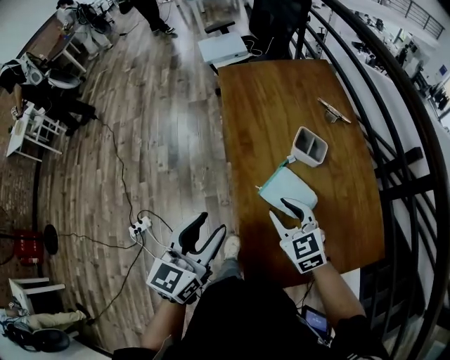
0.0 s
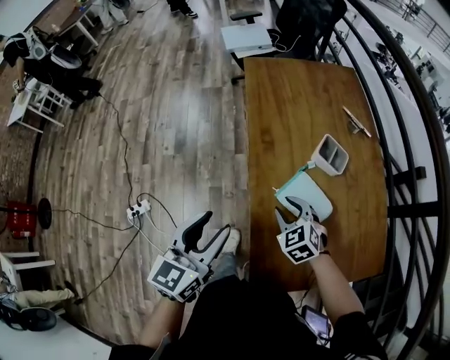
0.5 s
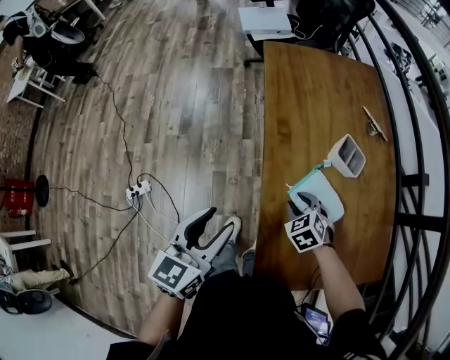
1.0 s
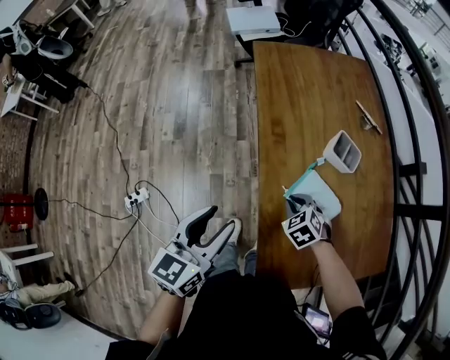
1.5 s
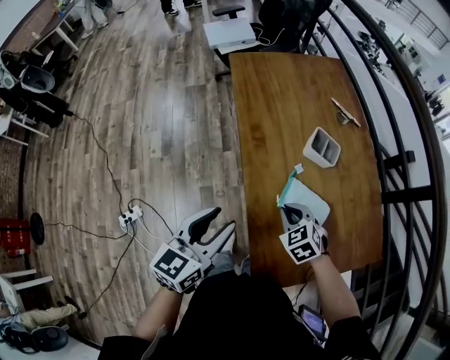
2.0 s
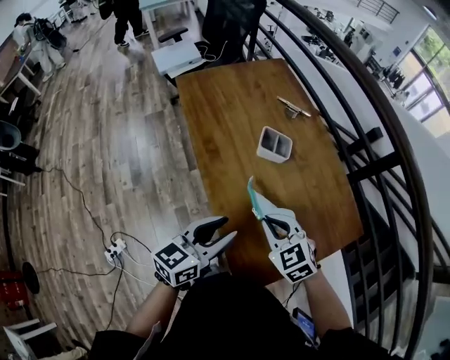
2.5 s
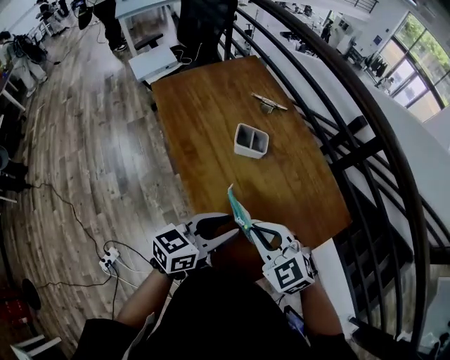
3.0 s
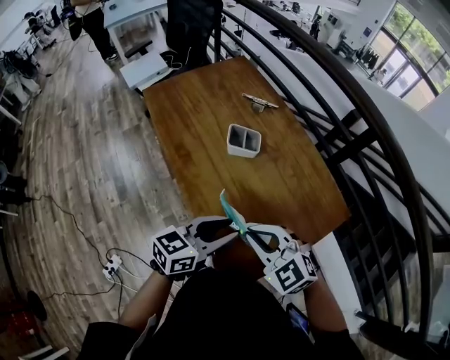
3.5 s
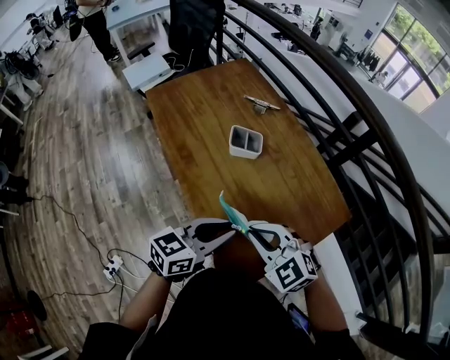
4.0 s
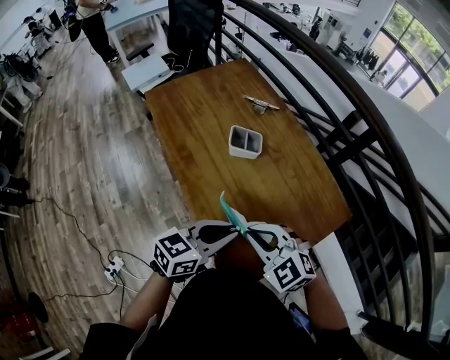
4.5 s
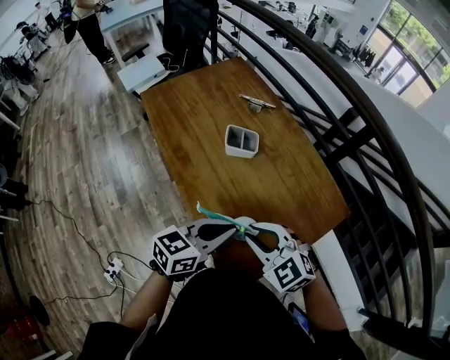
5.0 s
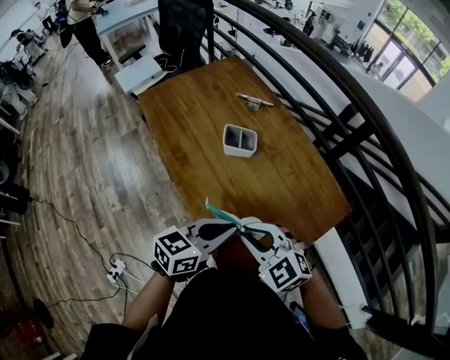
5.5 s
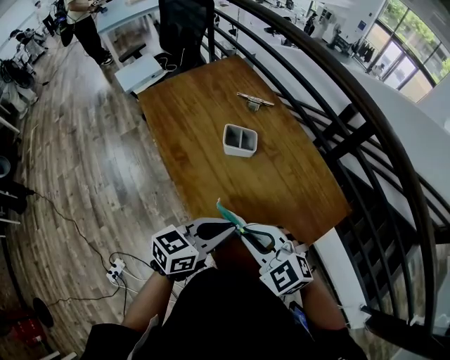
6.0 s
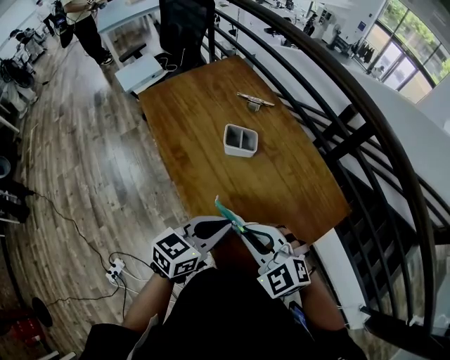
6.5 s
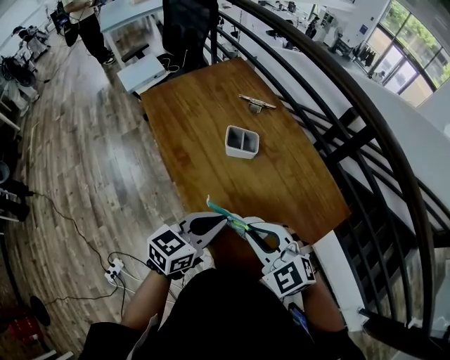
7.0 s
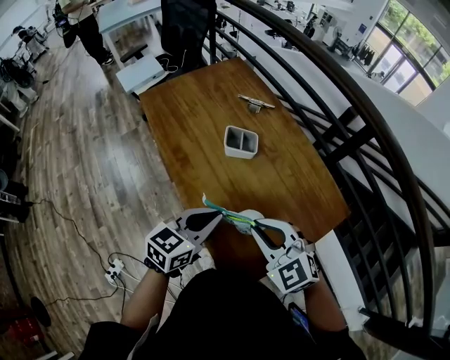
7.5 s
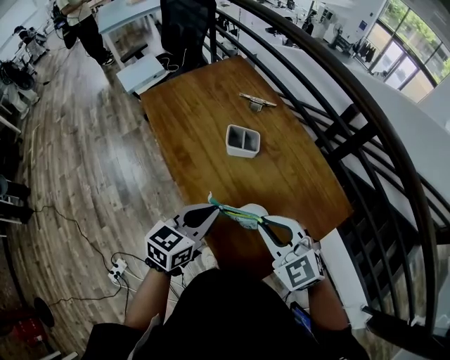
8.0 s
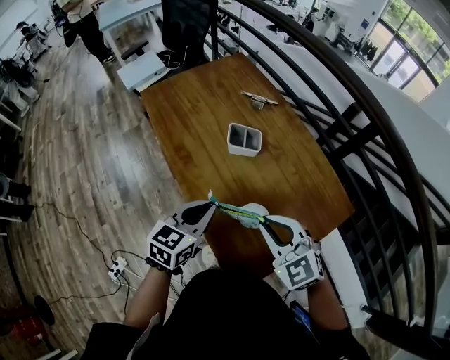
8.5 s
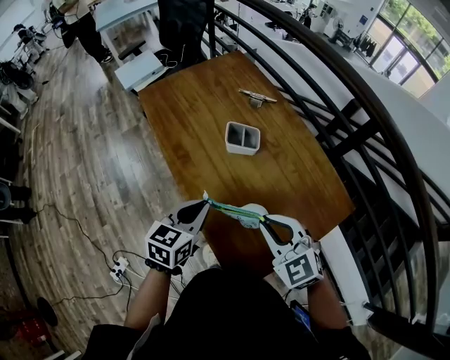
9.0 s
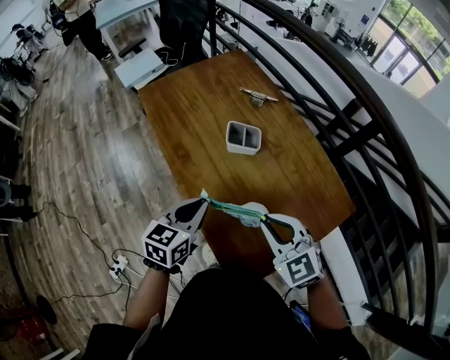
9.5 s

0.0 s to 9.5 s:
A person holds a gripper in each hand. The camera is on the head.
0.0 to 2.0 s: The right gripper shifts approximately 10 cm downward, turns by approximately 30 degrees, and closes. Meanwhile the left gripper changes place by about 5 cm.
2.0 to 4.0 s: The right gripper is displaced upward and backward by about 15 cm, and turns by about 20 degrees. Meanwhile the left gripper shifts some 15 cm to the right, changes its angle by approximately 40 degrees, and closes up.
4.0 to 5.5 s: The grippers make only small movements.
5.5 to 7.5 s: The left gripper ends up some 5 cm from where it was.
7.5 to 9.5 s: The left gripper moves about 5 cm.

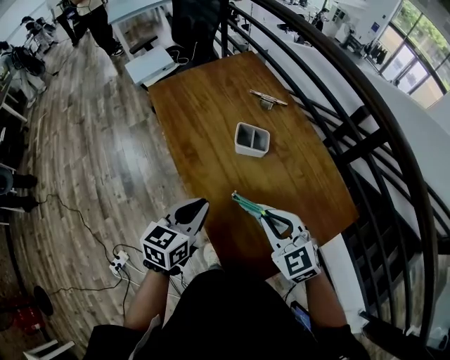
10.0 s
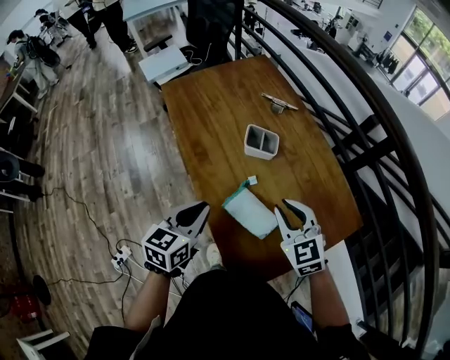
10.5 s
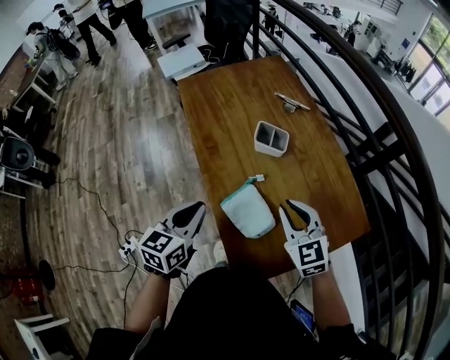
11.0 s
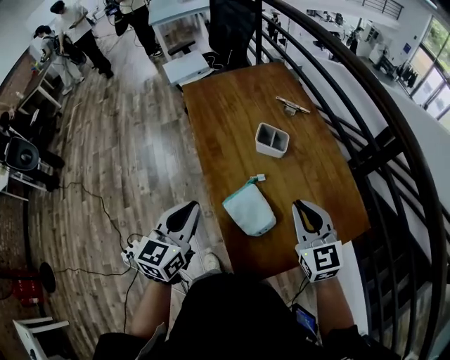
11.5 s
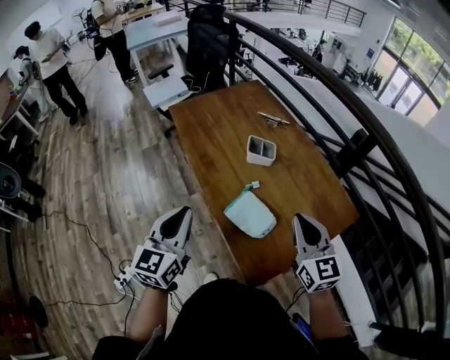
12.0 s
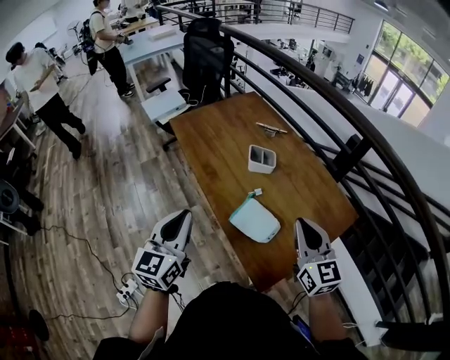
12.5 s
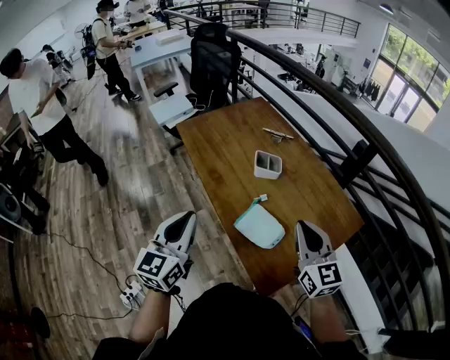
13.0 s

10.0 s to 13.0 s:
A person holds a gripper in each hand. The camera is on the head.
10.0 to 11.5 s: The right gripper shifts by approximately 5 cm. Meanwhile the left gripper heads upward, to the left and backward, covering some 10 cm, and changes its angle by approximately 20 degrees.
11.5 to 13.0 s: The right gripper goes about 10 cm backward and upward. The left gripper goes some 10 cm to the left and upward.

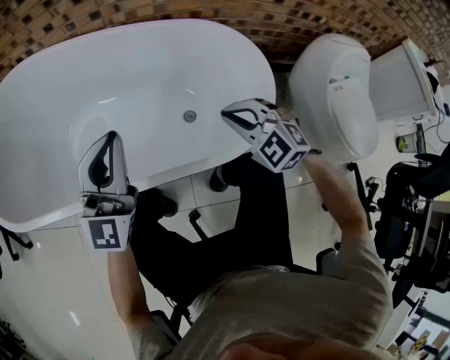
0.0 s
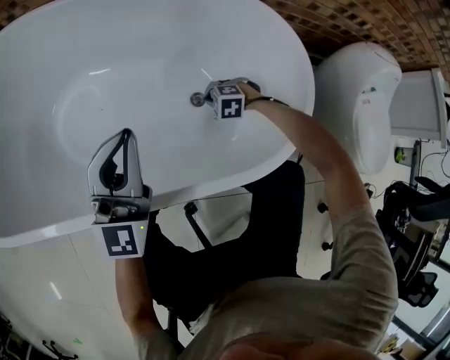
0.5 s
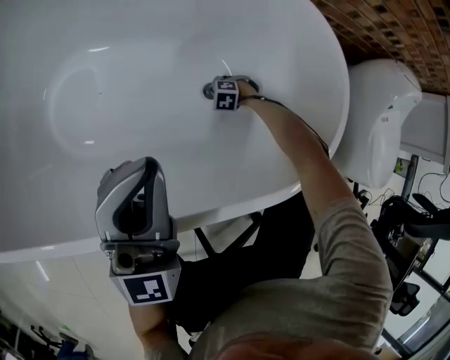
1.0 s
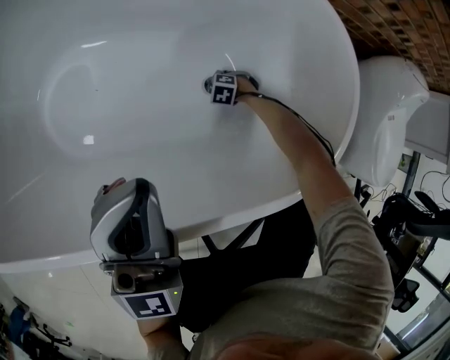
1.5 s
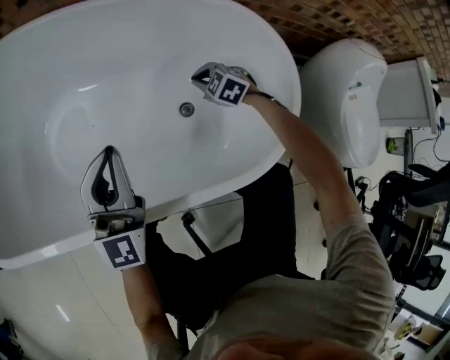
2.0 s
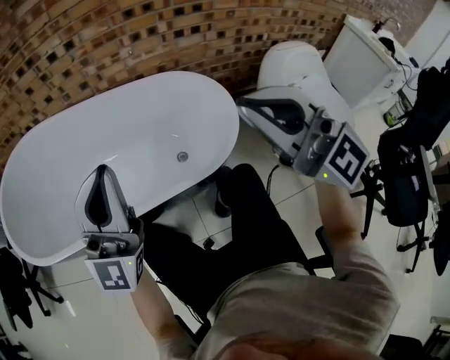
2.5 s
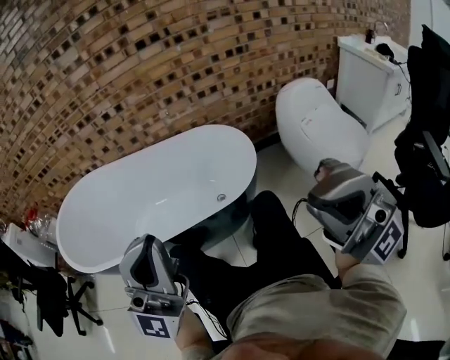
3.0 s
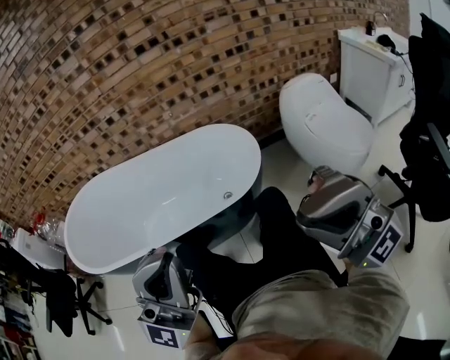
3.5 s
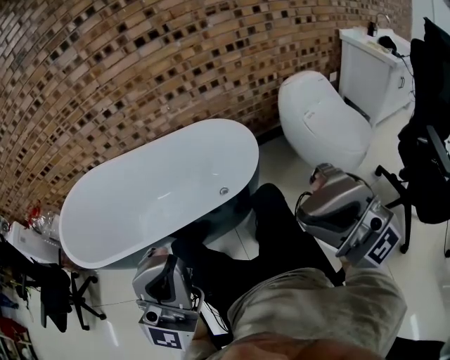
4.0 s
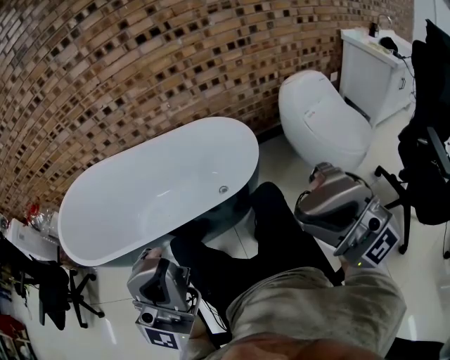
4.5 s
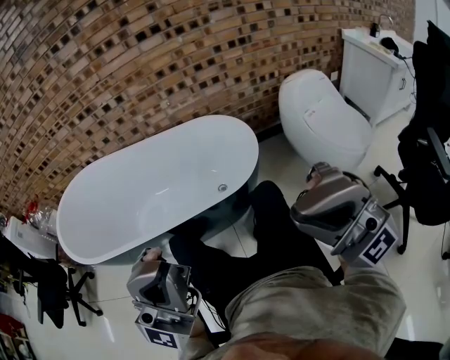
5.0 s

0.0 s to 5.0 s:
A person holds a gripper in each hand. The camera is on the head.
0.0 to 2.5 s: The right gripper travels upward by some 35 cm, and tilts its fingers about 50 degrees upward. The left gripper heads upward, covering approximately 15 cm.
2.5 to 5.0 s: The grippers both shift backward by approximately 30 cm. The left gripper rotates roughly 30 degrees. The right gripper changes its angle by some 30 degrees.

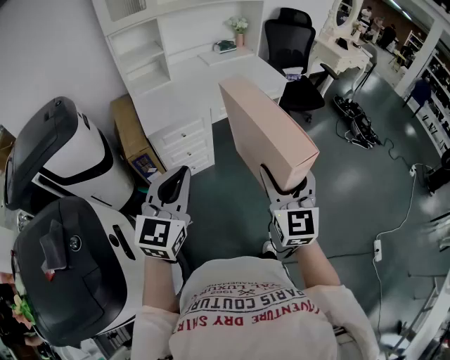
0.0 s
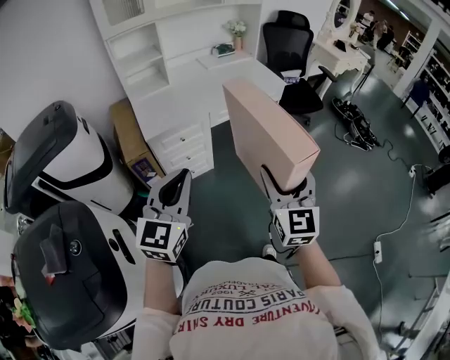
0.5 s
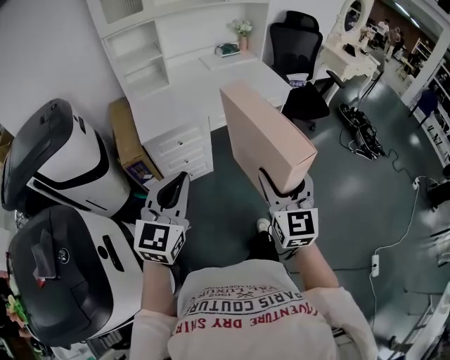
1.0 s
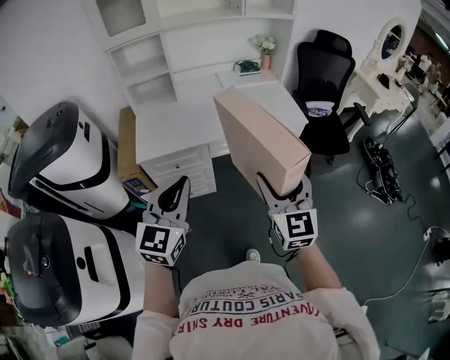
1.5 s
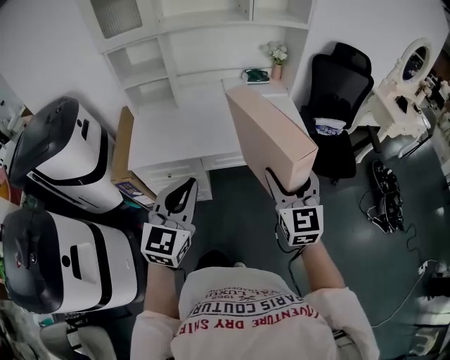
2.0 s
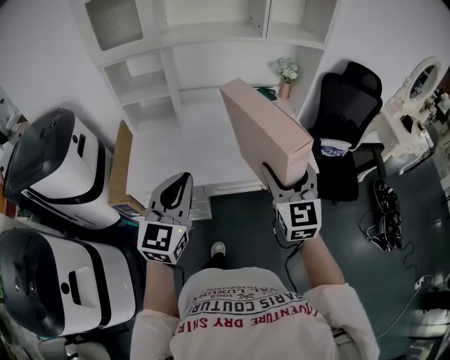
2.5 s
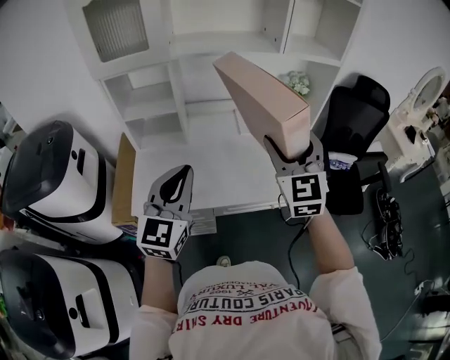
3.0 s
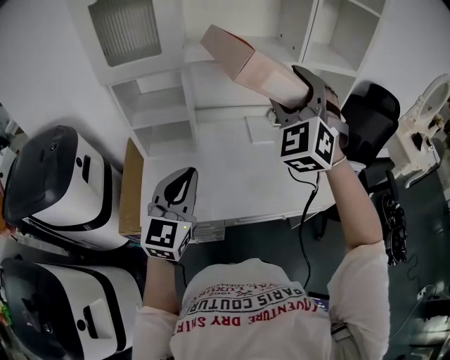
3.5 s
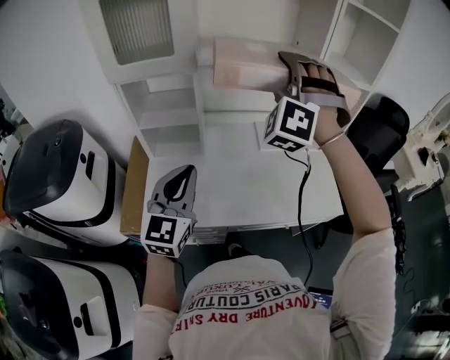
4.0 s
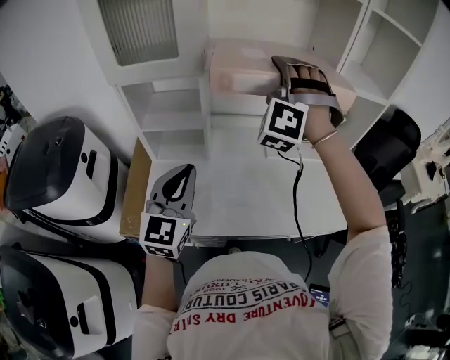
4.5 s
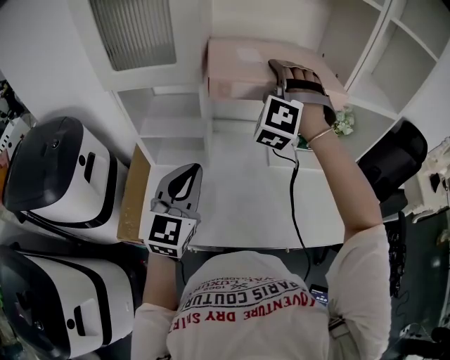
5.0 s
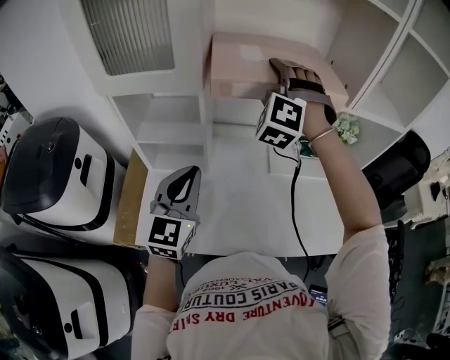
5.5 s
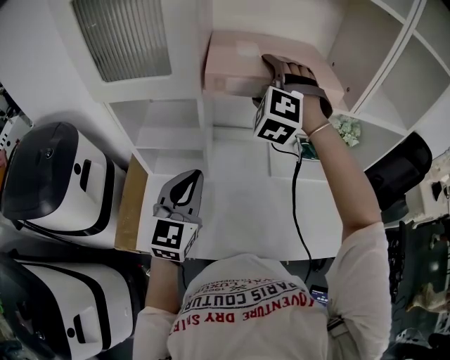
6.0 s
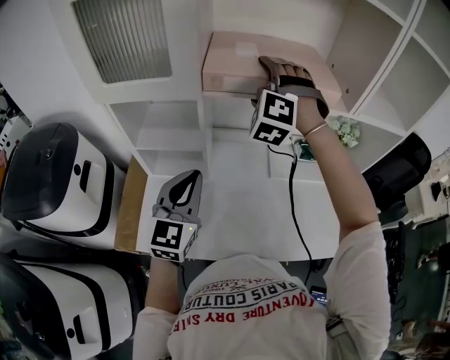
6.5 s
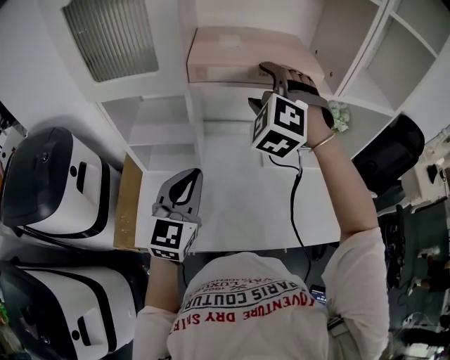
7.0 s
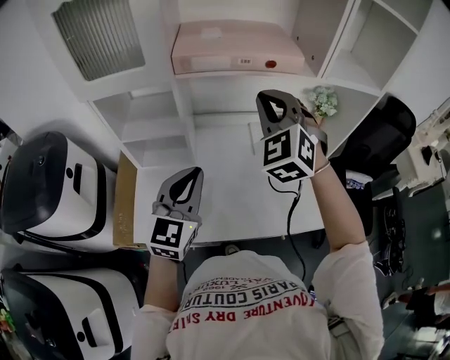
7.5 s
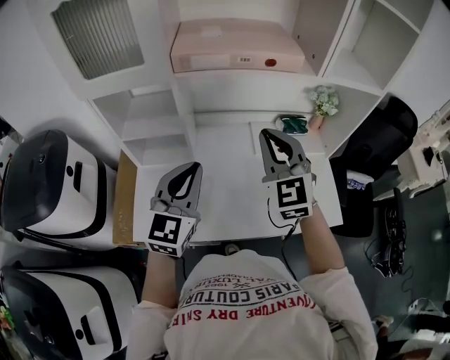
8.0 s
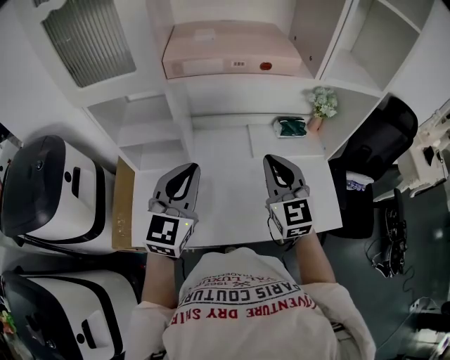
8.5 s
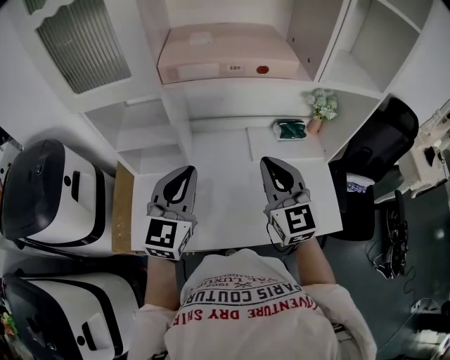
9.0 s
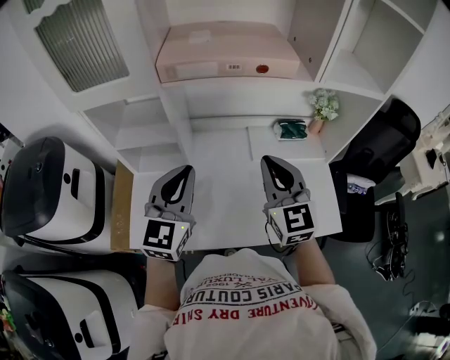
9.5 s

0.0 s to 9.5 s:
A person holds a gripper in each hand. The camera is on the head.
0.0 to 2.0 s: Both grippers travel together forward and to the right, roughly 40 cm. The right gripper rotates some 20 degrees.
2.0 to 4.0 s: The left gripper travels forward and to the left by some 35 cm. The right gripper heads forward, to the left and upward, covering approximately 50 cm, and rotates around the line of its fingers by roughly 70 degrees, counterclockwise from behind.
4.0 to 5.5 s: The right gripper is displaced forward, downward and to the left by about 20 cm. Meanwhile the left gripper is displaced forward by approximately 10 cm.
5.5 to 7.5 s: The left gripper shifts approximately 5 cm to the right; the right gripper travels backward and to the right by some 15 cm, turns by some 30 degrees, and closes its fingers.
7.5 to 9.5 s: The right gripper is displaced downward, backward and to the right by approximately 15 cm, and swivels some 40 degrees.
